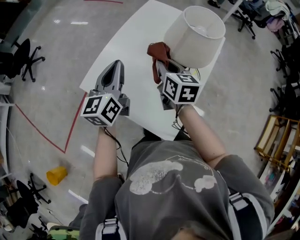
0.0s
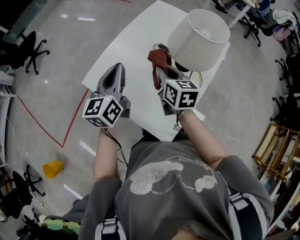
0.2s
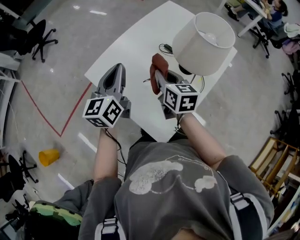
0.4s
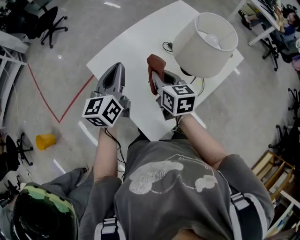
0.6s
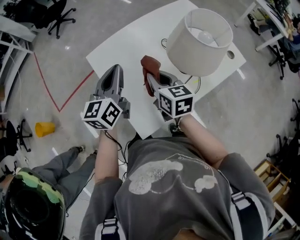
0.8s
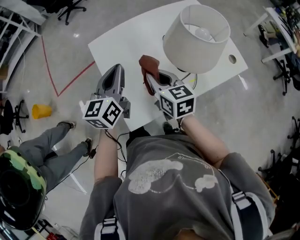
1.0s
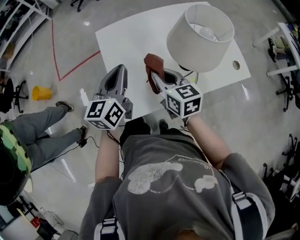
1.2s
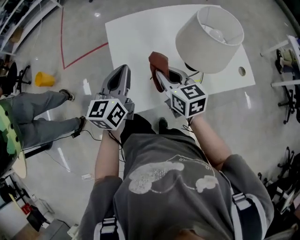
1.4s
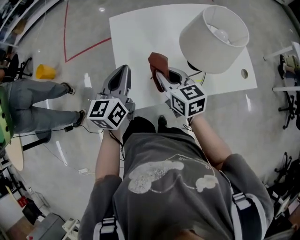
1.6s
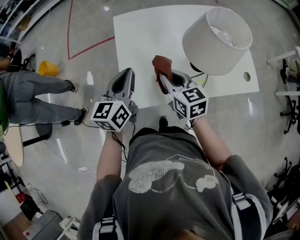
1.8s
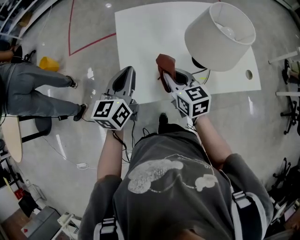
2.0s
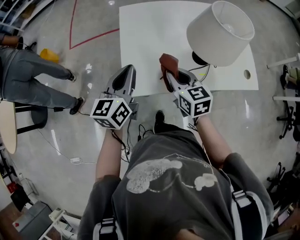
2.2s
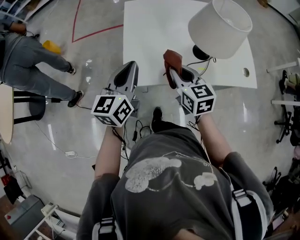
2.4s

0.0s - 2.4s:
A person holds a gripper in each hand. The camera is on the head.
0.0s - 1.2s: The left gripper ends up roughly 15 cm from where it was, and changes its angle by approximately 40 degrees. The right gripper shifts by approximately 10 cm, and changes its angle by roughly 50 degrees.
1.2s - 2.4s: The two grippers go about 10 cm backward.

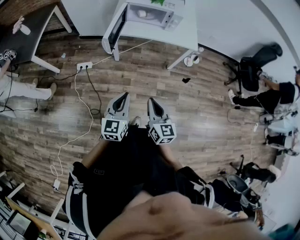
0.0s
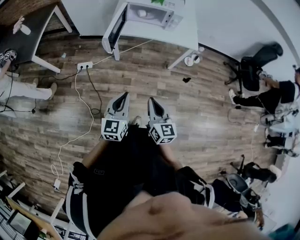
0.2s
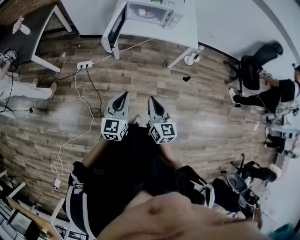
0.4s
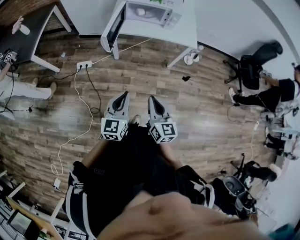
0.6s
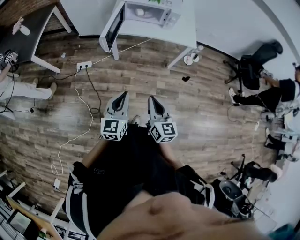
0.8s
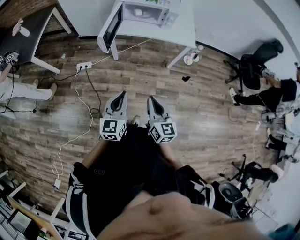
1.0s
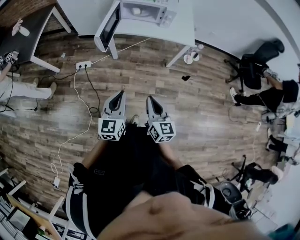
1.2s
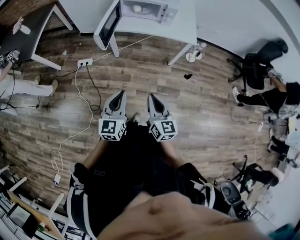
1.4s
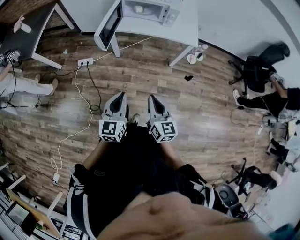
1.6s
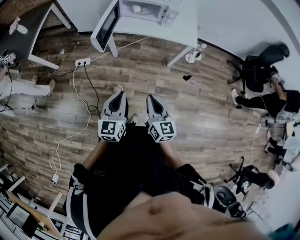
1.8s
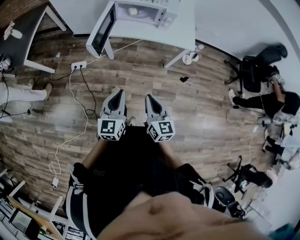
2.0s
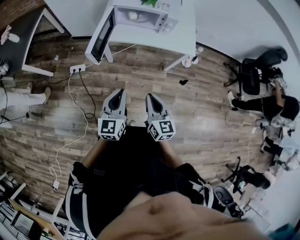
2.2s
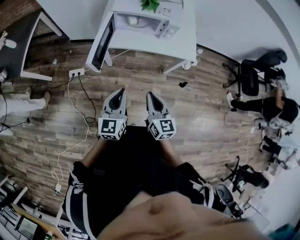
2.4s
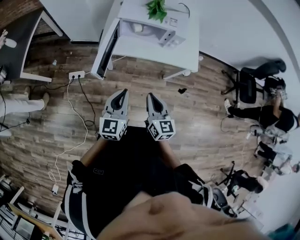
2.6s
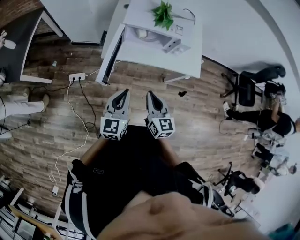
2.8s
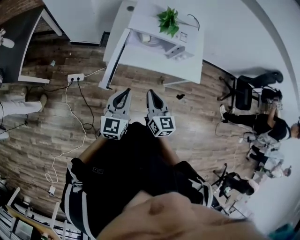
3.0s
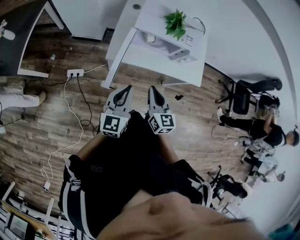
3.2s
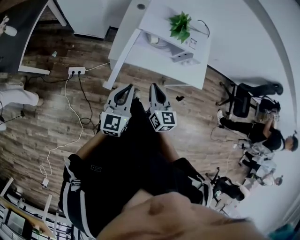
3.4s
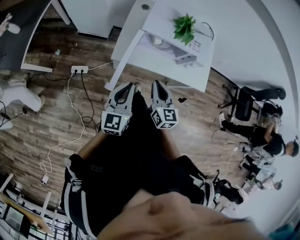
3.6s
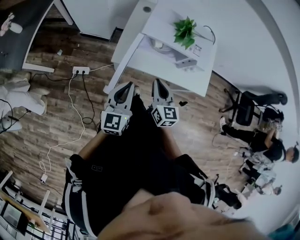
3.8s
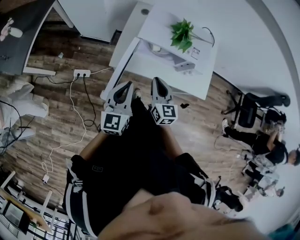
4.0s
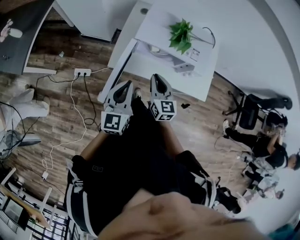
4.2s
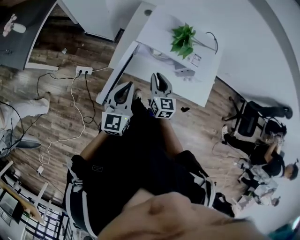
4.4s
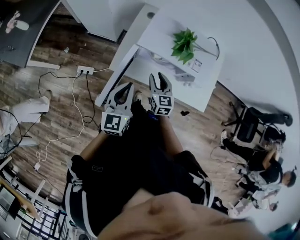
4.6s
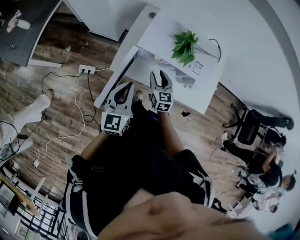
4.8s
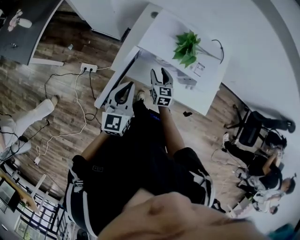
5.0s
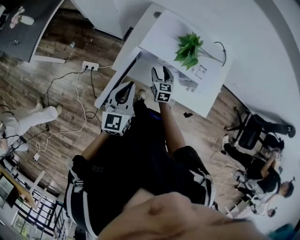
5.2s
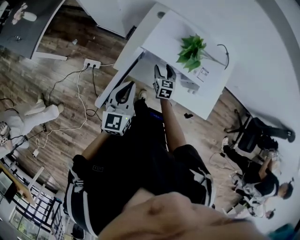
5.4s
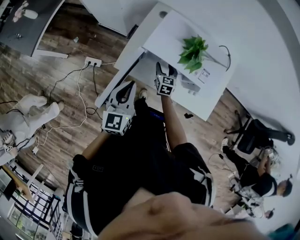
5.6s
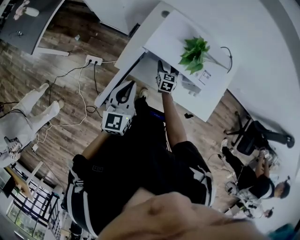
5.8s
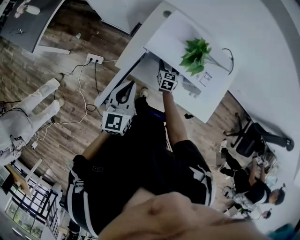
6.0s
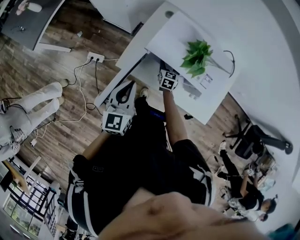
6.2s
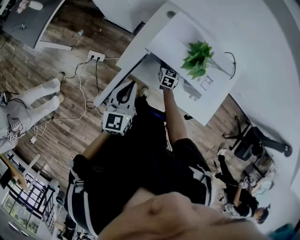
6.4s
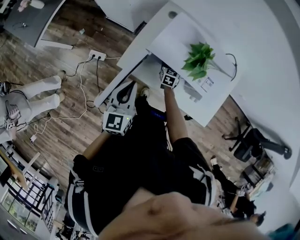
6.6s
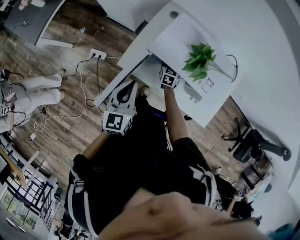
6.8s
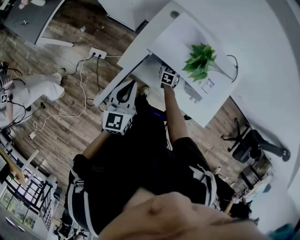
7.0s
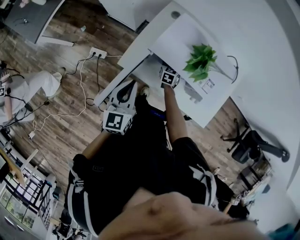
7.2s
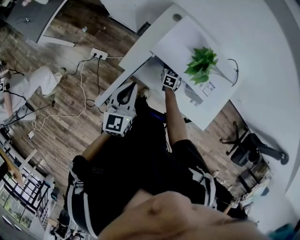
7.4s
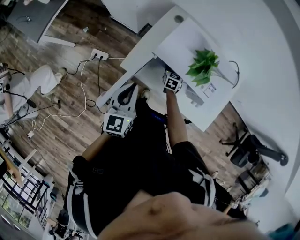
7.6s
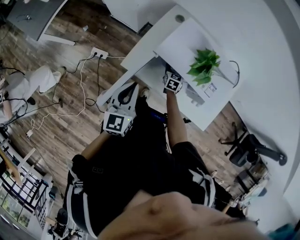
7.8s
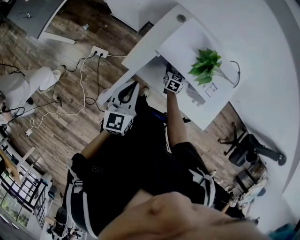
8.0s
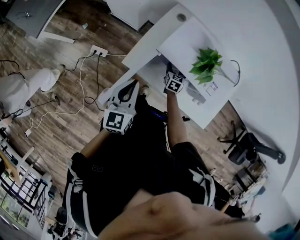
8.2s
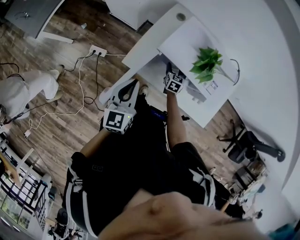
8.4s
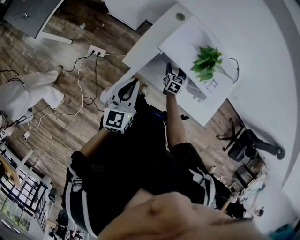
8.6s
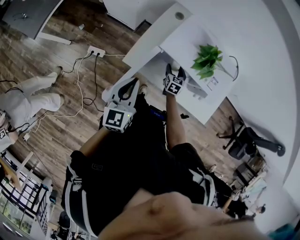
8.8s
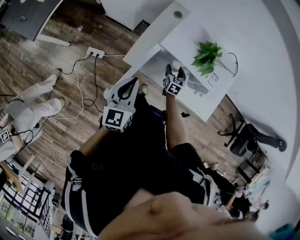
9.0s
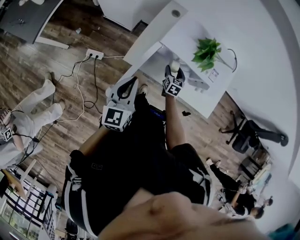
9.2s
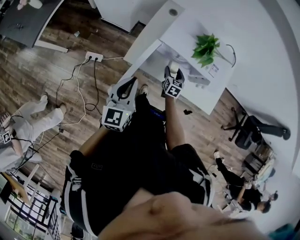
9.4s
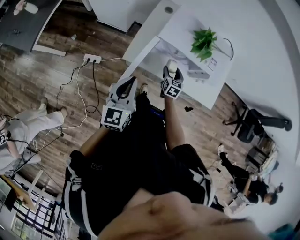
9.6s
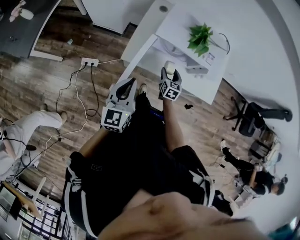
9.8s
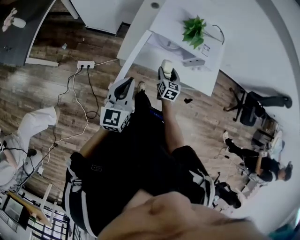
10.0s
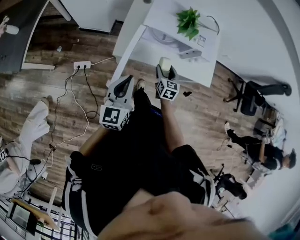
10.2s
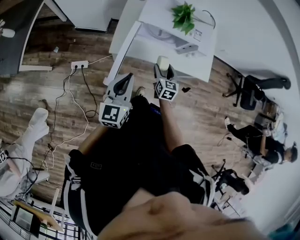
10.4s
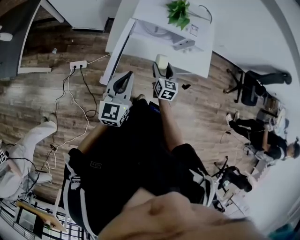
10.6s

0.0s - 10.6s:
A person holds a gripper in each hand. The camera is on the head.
0.0s - 1.6s: The two grippers go roughly 5 cm to the right.
1.6s - 3.0s: Both grippers travel together forward, some 35 cm.
3.0s - 4.6s: The right gripper is displaced forward and downward by roughly 25 cm, and opens, while the left gripper moves forward, approximately 15 cm.
4.6s - 6.0s: The right gripper goes about 20 cm downward and forward, and opens its fingers.
6.0s - 7.6s: The grippers move only a little.
7.6s - 9.0s: The right gripper is displaced backward by approximately 5 cm.
9.0s - 10.6s: The left gripper travels backward by about 10 cm, and turns by roughly 20 degrees. Meanwhile the right gripper is displaced backward and upward by about 20 cm.

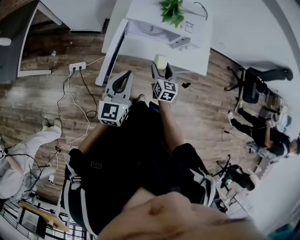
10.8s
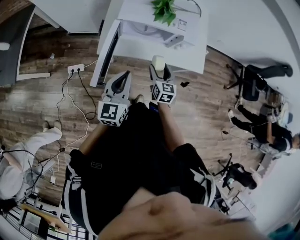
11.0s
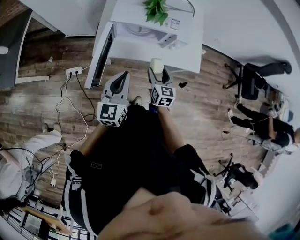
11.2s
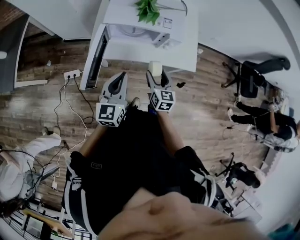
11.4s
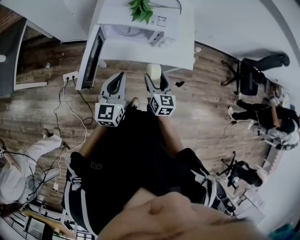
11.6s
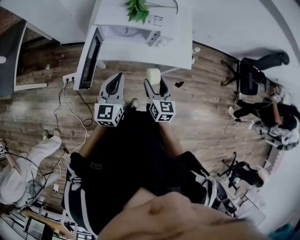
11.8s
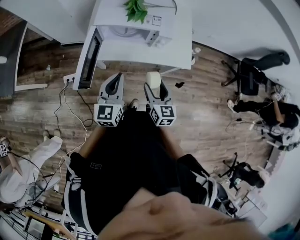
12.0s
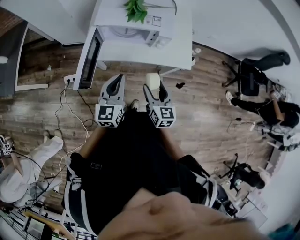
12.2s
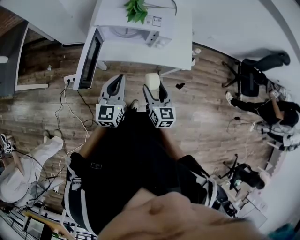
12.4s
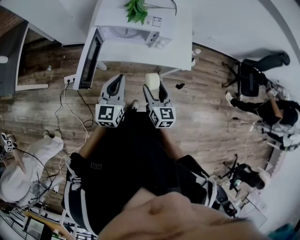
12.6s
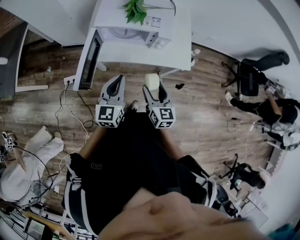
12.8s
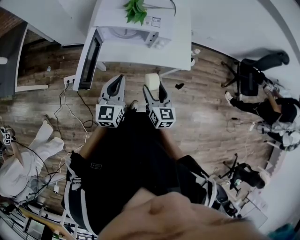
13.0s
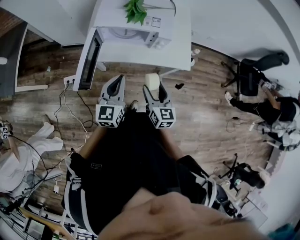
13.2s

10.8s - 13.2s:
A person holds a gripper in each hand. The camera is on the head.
10.8s - 12.0s: The left gripper moves to the right, roughly 10 cm, while the right gripper is displaced backward, to the right and upward by approximately 15 cm.
12.0s - 13.2s: The two grippers keep their place.

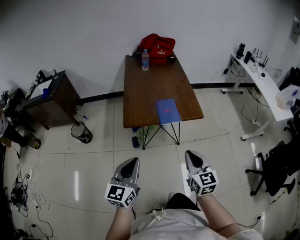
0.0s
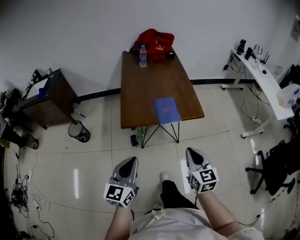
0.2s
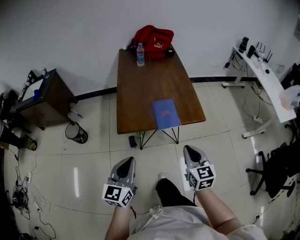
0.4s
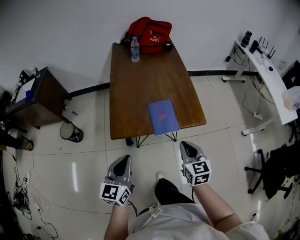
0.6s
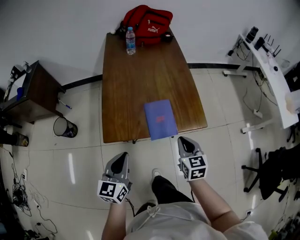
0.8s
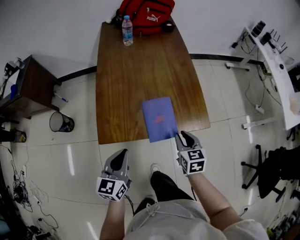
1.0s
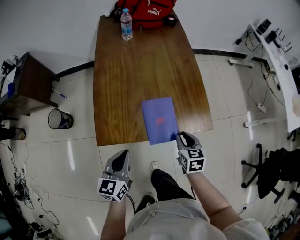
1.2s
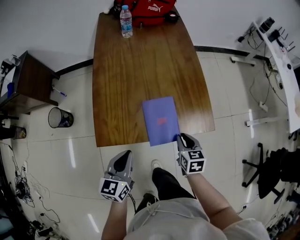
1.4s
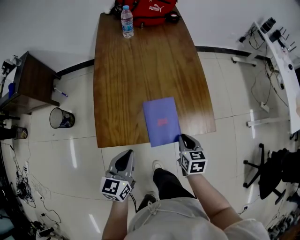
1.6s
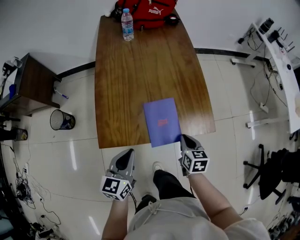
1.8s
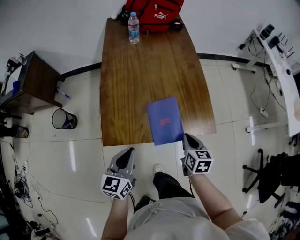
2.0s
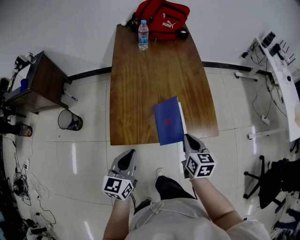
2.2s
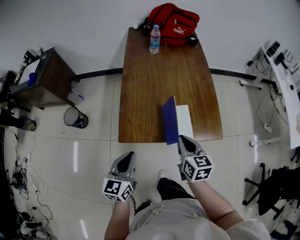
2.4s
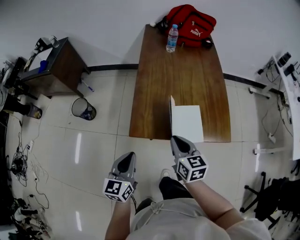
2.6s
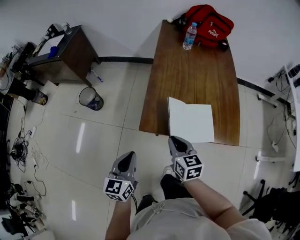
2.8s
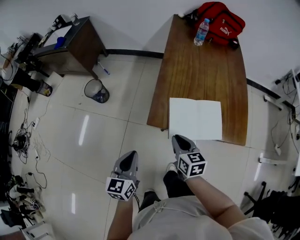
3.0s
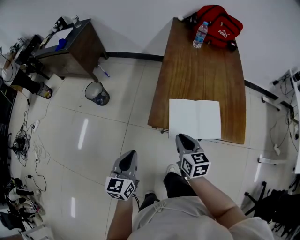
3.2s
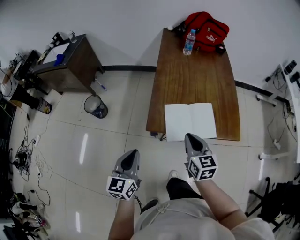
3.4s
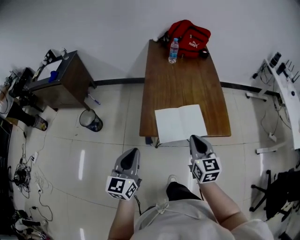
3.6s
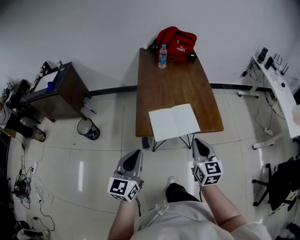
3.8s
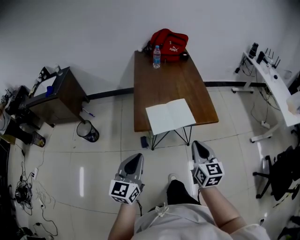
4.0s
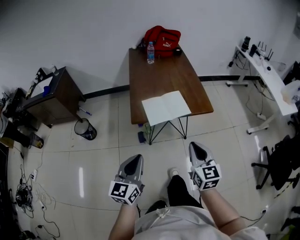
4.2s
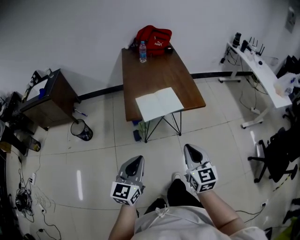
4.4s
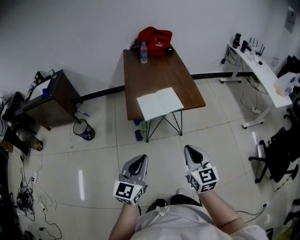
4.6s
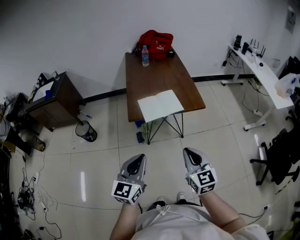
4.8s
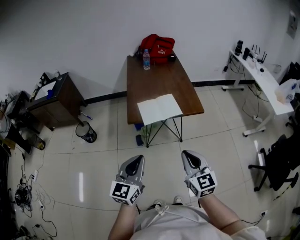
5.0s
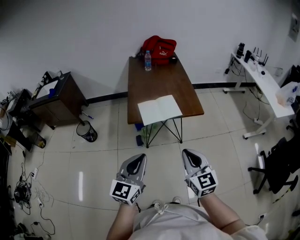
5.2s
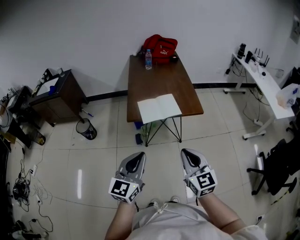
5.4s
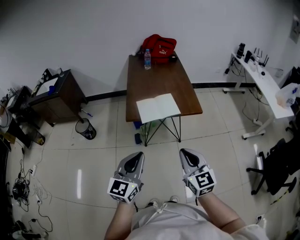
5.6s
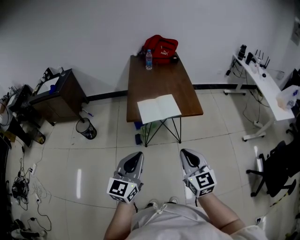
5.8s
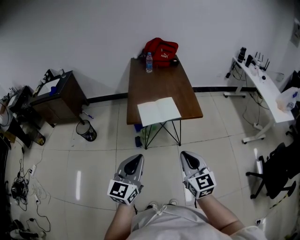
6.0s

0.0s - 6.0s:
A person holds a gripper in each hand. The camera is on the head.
0.0s - 1.6s: The grippers both shift forward and downward by about 35 cm. The right gripper rotates roughly 30 degrees, while the left gripper changes its angle by about 20 degrees.
1.6s - 3.0s: The left gripper ends up about 20 cm from where it was, and swivels roughly 20 degrees; the right gripper shifts by roughly 25 cm, and changes its angle by some 30 degrees.
3.0s - 4.4s: The right gripper moves some 35 cm, and turns by approximately 40 degrees. The left gripper shifts by about 25 cm, and turns by approximately 30 degrees.
4.4s - 6.0s: The left gripper travels upward and to the right by some 10 cm. Meanwhile the right gripper changes place by about 5 cm.

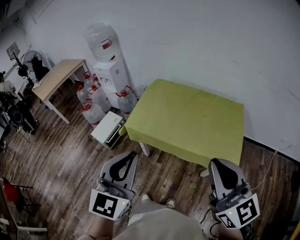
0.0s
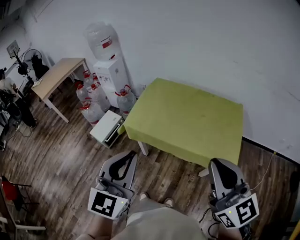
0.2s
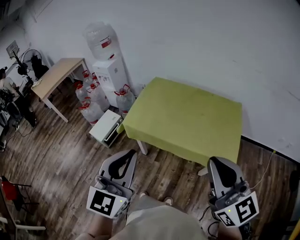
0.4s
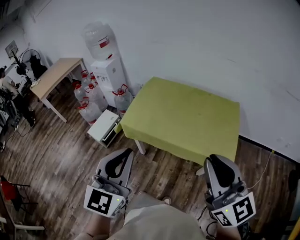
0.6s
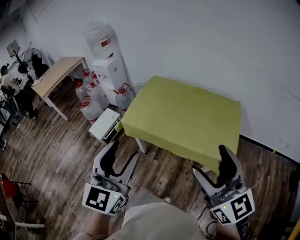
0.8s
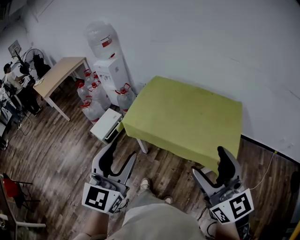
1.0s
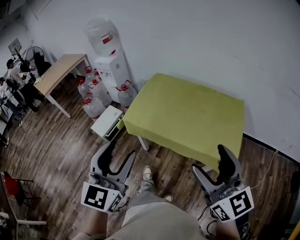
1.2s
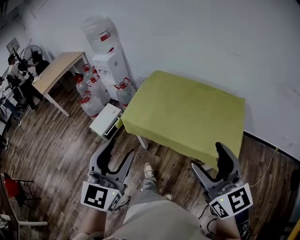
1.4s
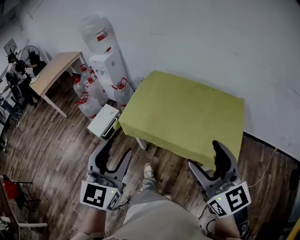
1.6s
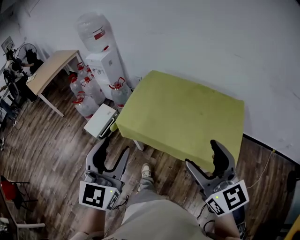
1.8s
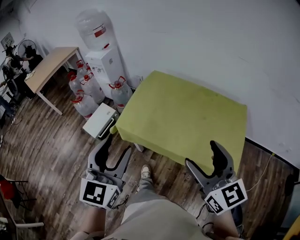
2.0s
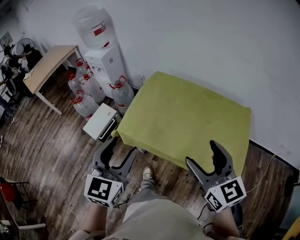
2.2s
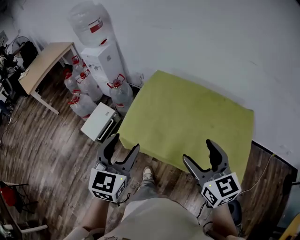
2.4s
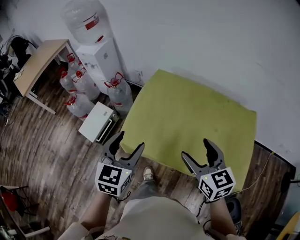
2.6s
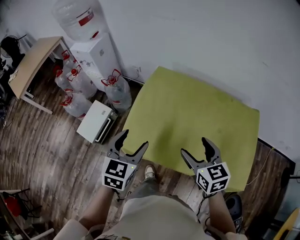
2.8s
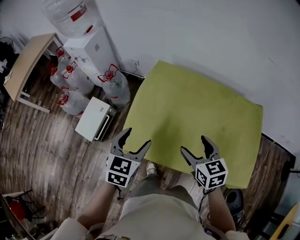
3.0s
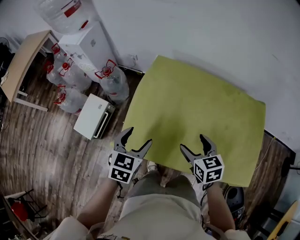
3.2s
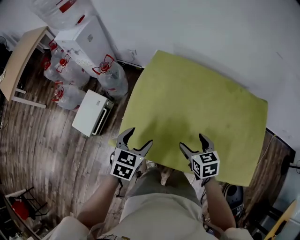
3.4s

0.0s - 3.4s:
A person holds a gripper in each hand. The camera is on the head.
0.0s - 1.6s: The right gripper heads forward and downward, covering some 10 cm, and opens up. The left gripper moves forward, roughly 5 cm, and opens up.
1.6s - 3.4s: Both grippers travel together forward and downward, some 50 cm. The right gripper tips its fingers downward by approximately 50 degrees. Meanwhile the left gripper points its fingers approximately 40 degrees further downward.
